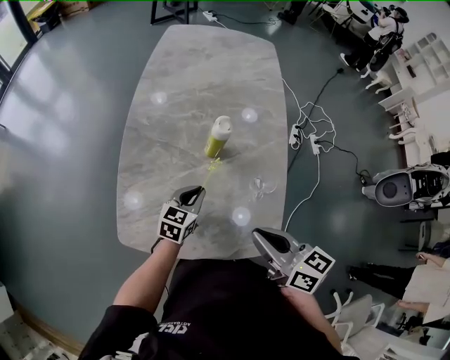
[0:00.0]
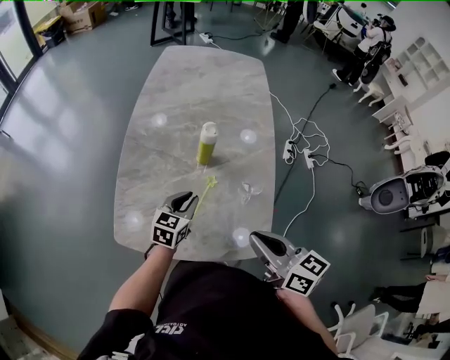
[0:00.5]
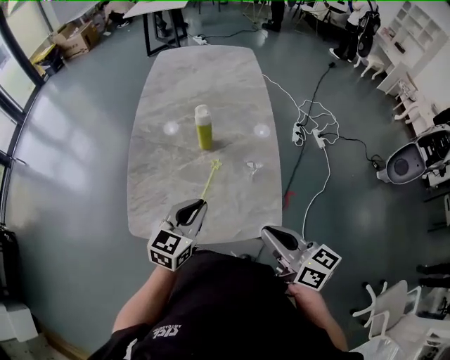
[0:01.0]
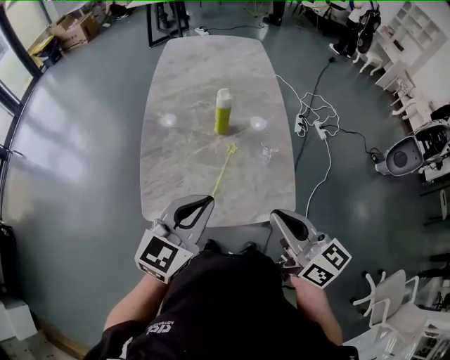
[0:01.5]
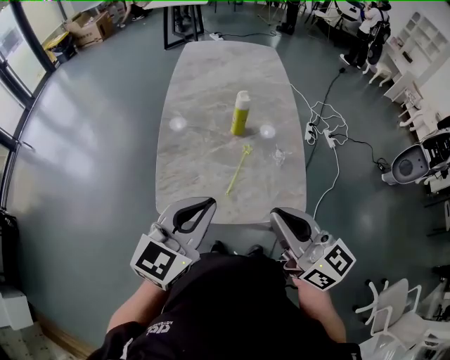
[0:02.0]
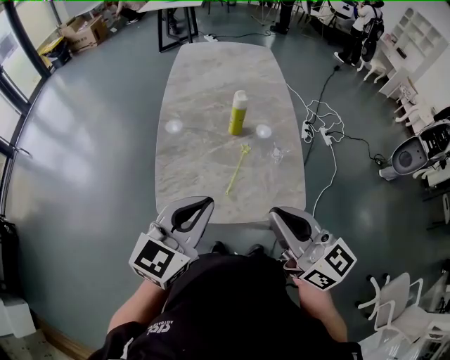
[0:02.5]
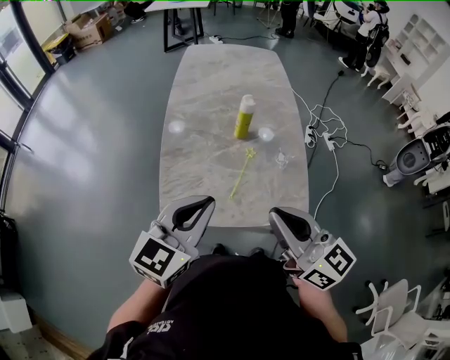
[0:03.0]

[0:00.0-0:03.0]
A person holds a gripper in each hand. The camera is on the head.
0:00.0 to 0:01.5: The left gripper heads upward and backward, covering roughly 30 cm, and rotates about 30 degrees. The right gripper shifts roughly 15 cm backward and upward, and swivels approximately 20 degrees.
0:01.5 to 0:03.0: Both grippers move to the left, roughly 5 cm.

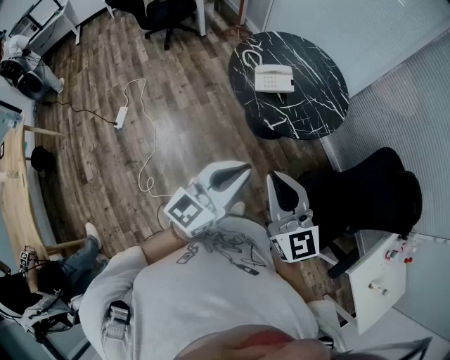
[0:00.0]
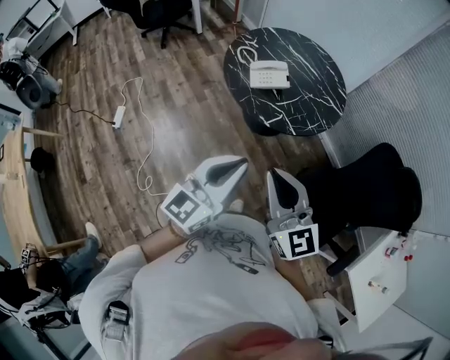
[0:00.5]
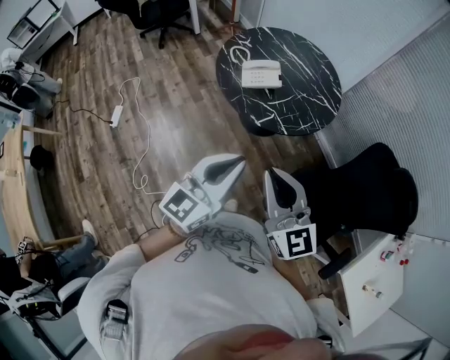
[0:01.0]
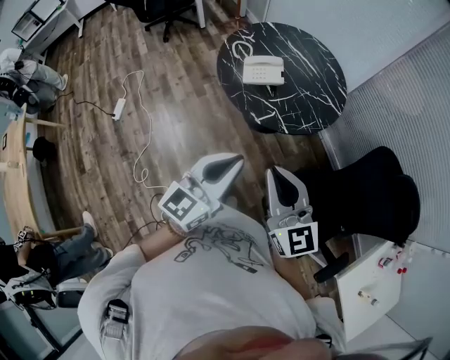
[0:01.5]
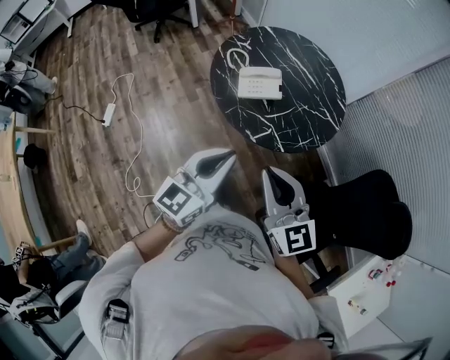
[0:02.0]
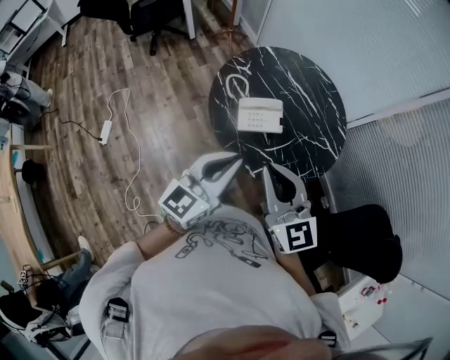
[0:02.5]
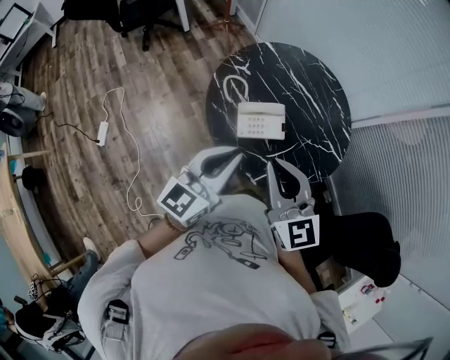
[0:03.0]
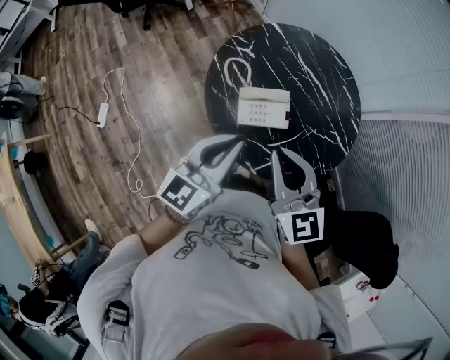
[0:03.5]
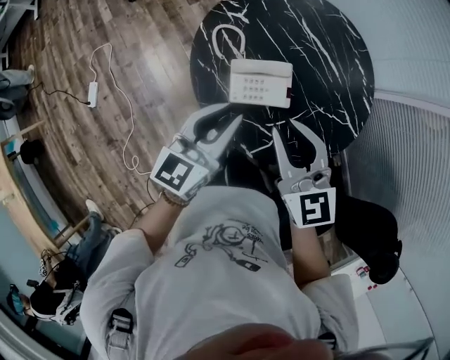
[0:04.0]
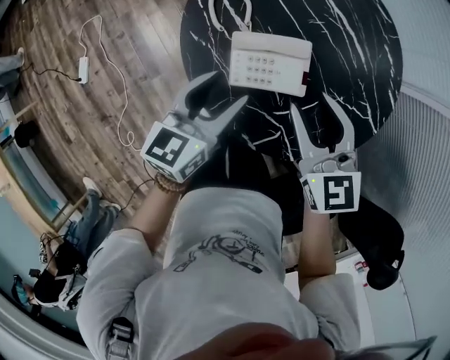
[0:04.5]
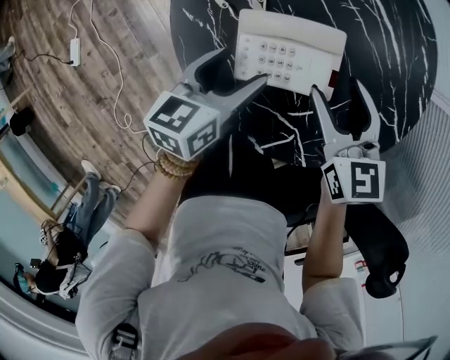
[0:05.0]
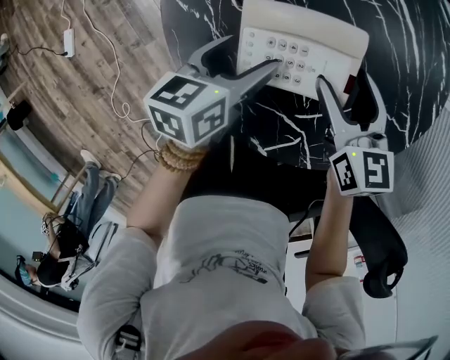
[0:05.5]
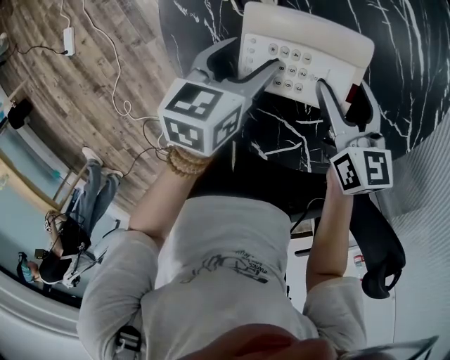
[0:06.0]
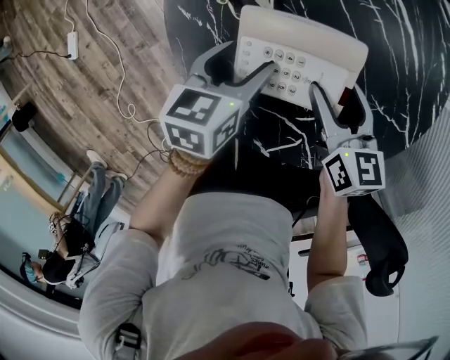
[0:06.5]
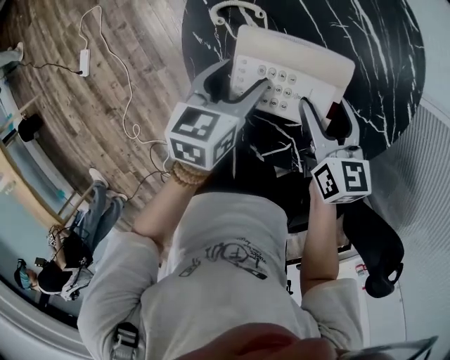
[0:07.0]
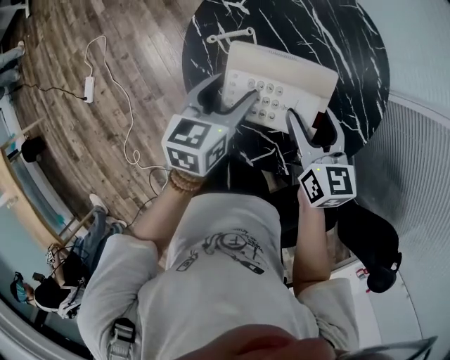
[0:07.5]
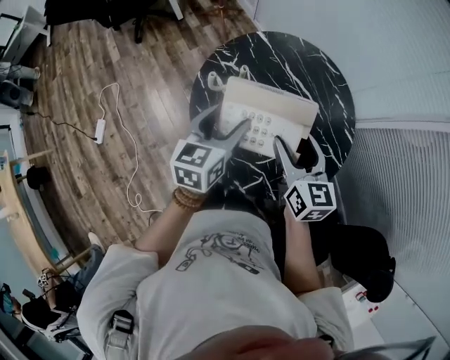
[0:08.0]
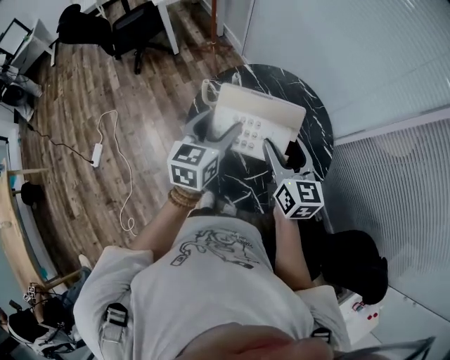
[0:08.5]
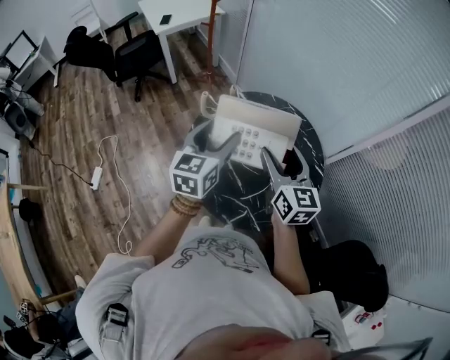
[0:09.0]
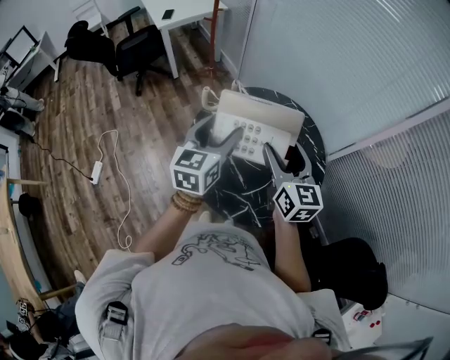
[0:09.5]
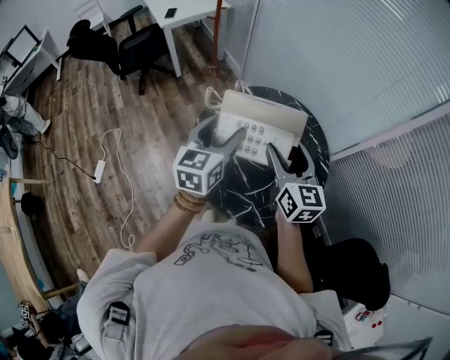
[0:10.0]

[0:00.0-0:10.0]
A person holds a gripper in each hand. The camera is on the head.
0:00.0 to 0:02.0: The left gripper goes some 20 cm forward; the right gripper travels forward and to the right by about 20 cm.
0:02.0 to 0:04.0: The grippers both shift forward by roughly 35 cm.
0:04.0 to 0:06.0: The two grippers go some 35 cm downward. The right gripper turns by approximately 30 degrees, and opens its fingers, while the left gripper changes its angle by about 40 degrees, and opens its fingers.
0:06.0 to 0:08.0: Both grippers move upward, approximately 35 cm. The left gripper rotates roughly 20 degrees.
0:08.0 to 0:10.0: Both grippers move upward, approximately 15 cm.

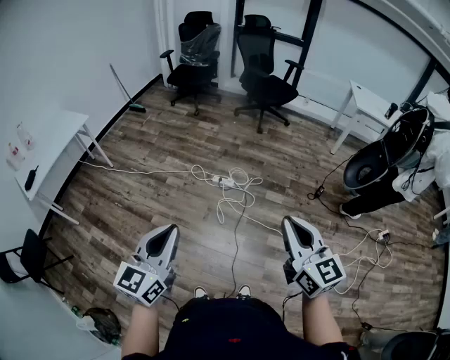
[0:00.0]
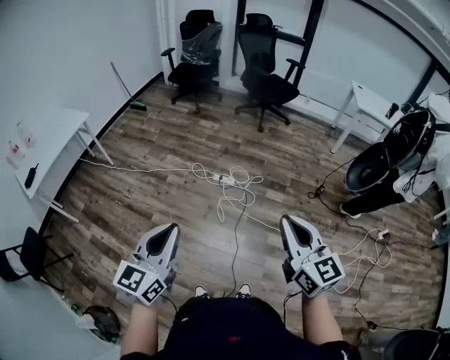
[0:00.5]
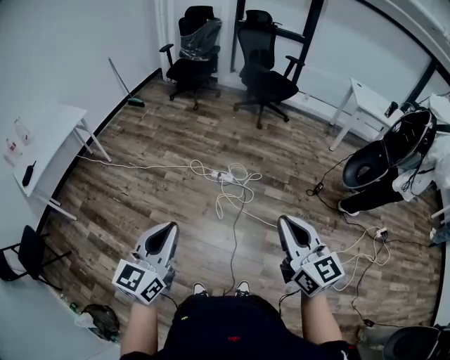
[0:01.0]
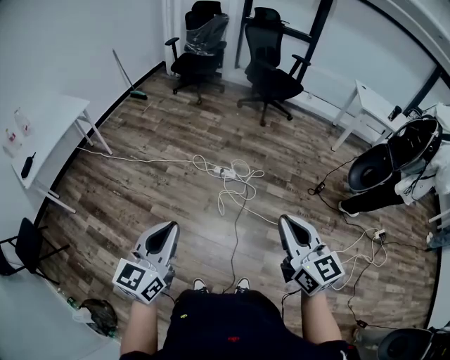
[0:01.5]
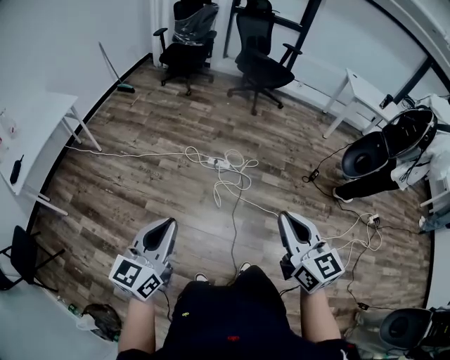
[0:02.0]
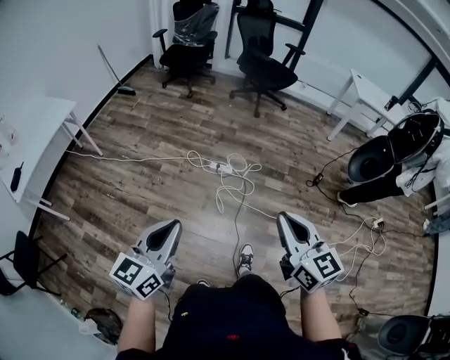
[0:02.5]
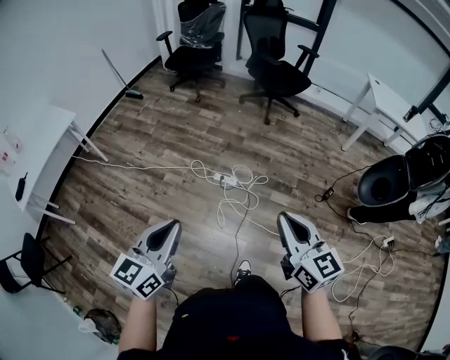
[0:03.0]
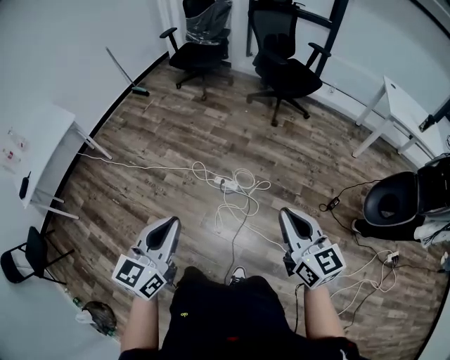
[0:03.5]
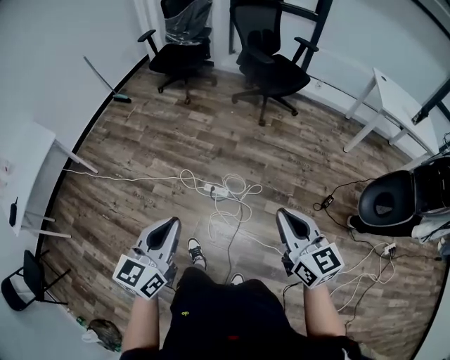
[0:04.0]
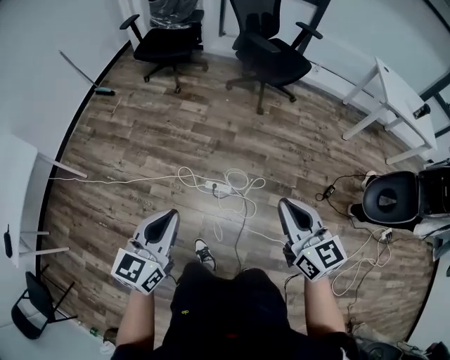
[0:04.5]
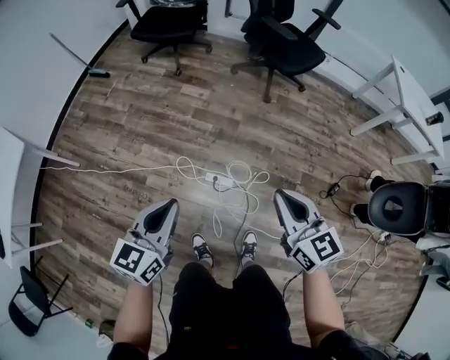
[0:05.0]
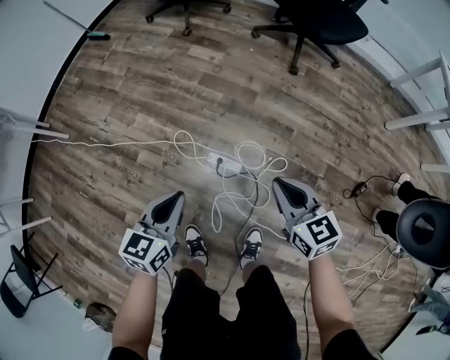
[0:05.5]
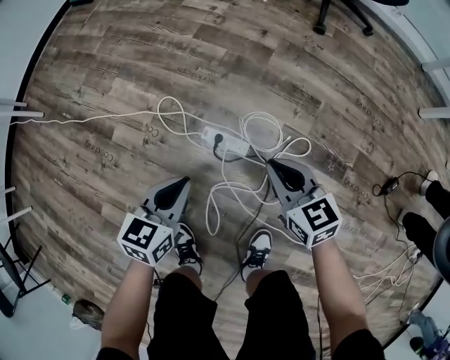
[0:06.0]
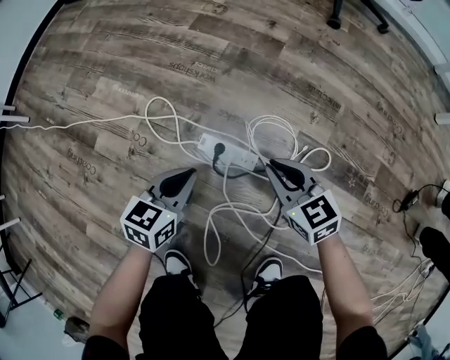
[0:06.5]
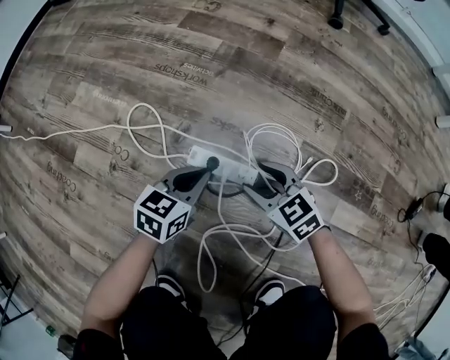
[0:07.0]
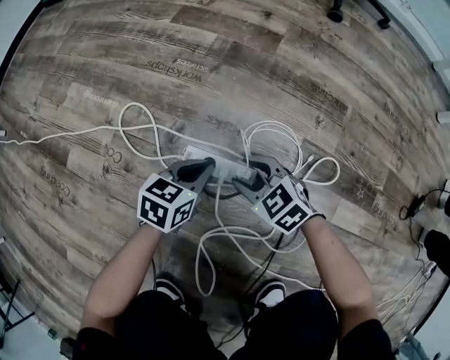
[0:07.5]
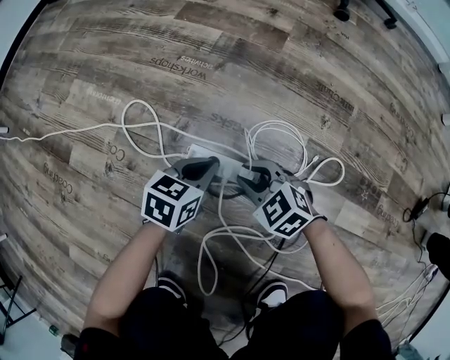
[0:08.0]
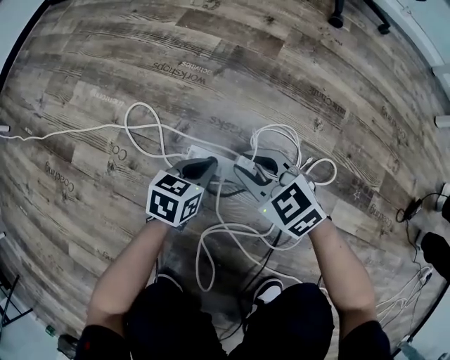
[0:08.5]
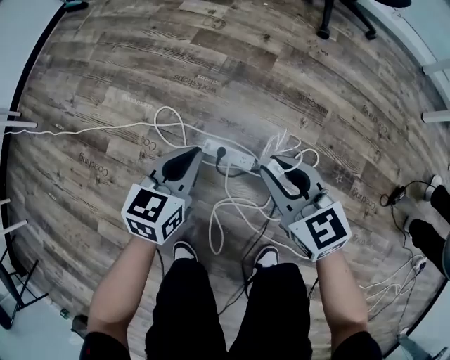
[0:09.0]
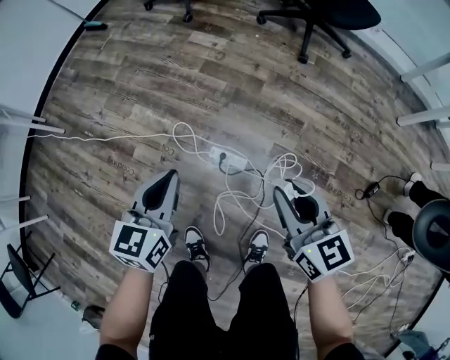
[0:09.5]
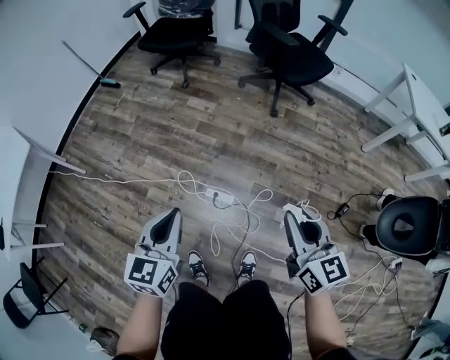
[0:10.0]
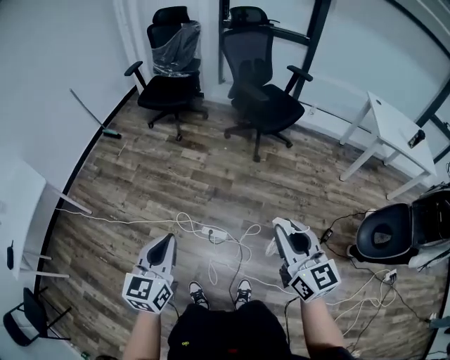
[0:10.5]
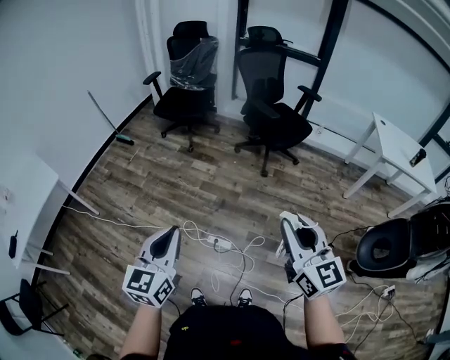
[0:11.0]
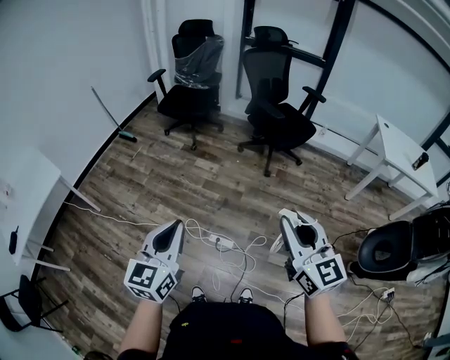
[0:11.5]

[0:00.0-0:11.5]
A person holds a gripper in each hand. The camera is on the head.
0:00.0 to 0:02.0: The grippers both shift to the left by approximately 10 cm.
0:02.0 to 0:04.0: The pair of grippers is taken forward and to the right, about 50 cm.
0:04.0 to 0:06.0: The two grippers go some 80 cm downward and forward. The left gripper rotates roughly 30 degrees. The right gripper rotates roughly 30 degrees.
0:06.0 to 0:07.5: The two grippers go roughly 35 cm downward. The right gripper turns by roughly 30 degrees, and opens.
0:07.5 to 0:09.5: Both grippers move upward, some 60 cm. The left gripper swivels about 30 degrees. Meanwhile the right gripper swivels approximately 40 degrees, and closes its fingers.
0:09.5 to 0:11.5: Both grippers travel together upward, approximately 60 cm. The right gripper turns by some 30 degrees.

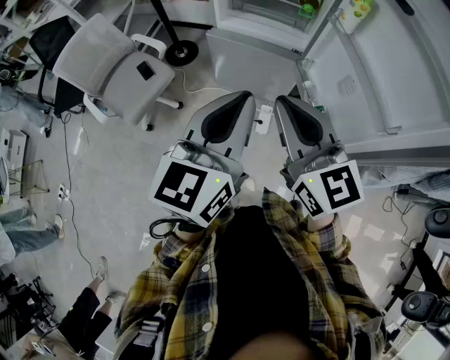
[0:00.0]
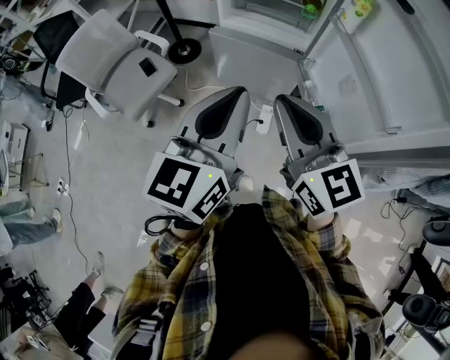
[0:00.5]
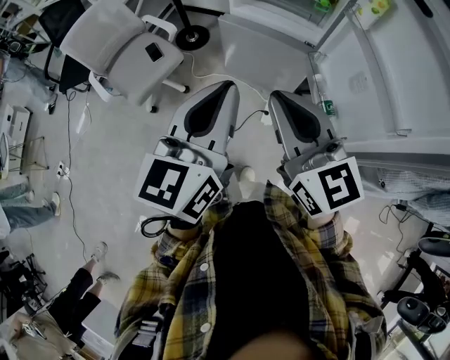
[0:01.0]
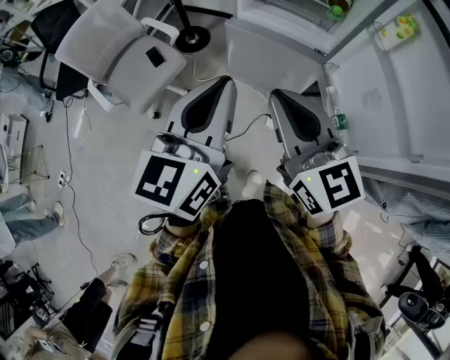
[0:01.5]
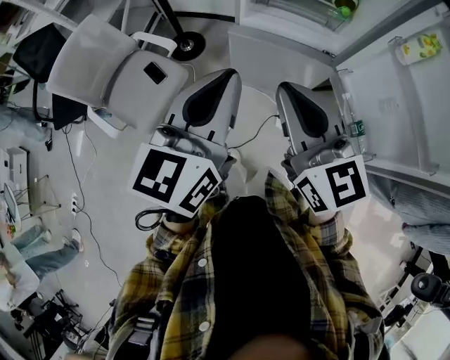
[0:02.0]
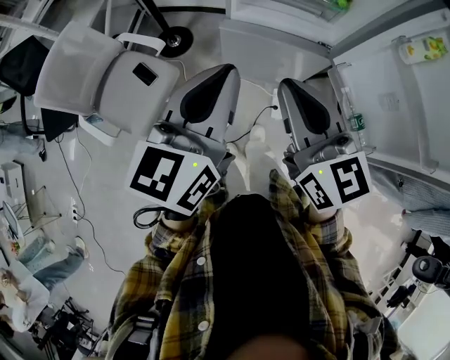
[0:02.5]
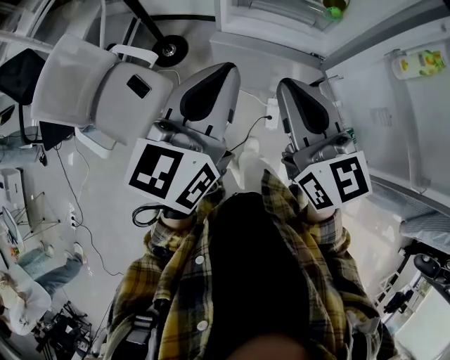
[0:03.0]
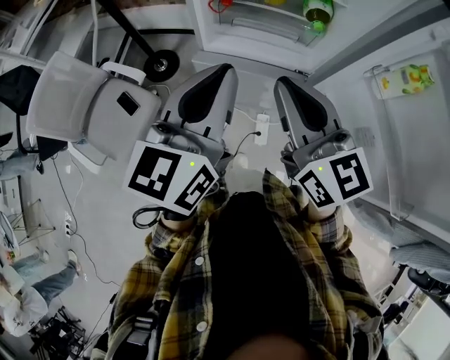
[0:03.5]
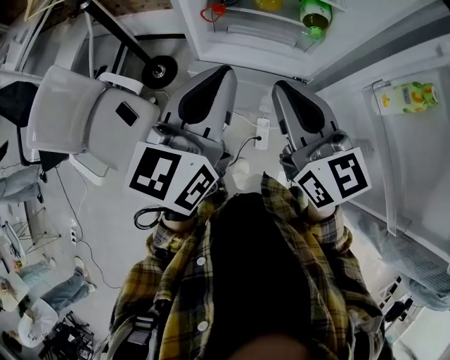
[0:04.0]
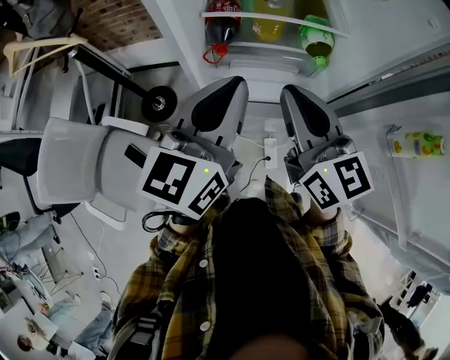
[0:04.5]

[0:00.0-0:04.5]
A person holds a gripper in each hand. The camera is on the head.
0:00.0 to 0:02.0: The grippers both shift to the left and forward by approximately 25 cm.
0:02.0 to 0:04.5: Both grippers move forward, roughly 30 cm.
